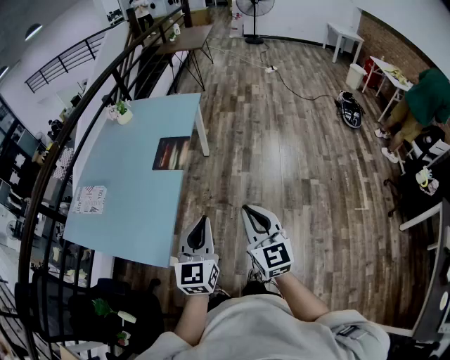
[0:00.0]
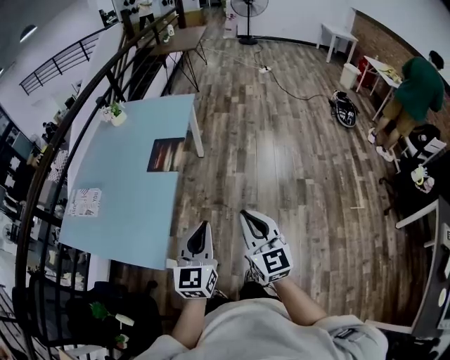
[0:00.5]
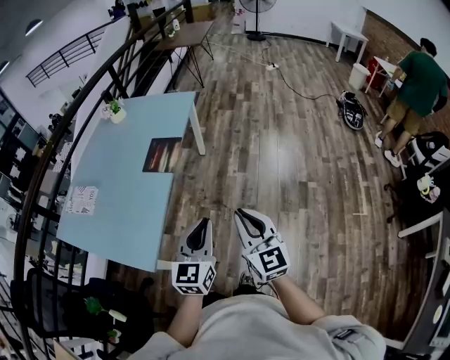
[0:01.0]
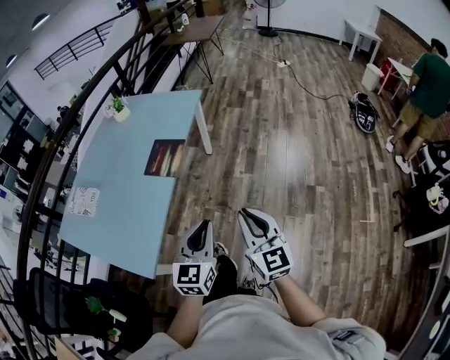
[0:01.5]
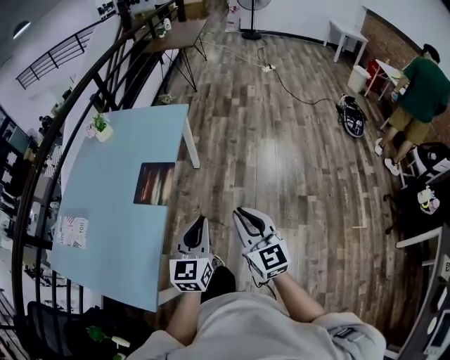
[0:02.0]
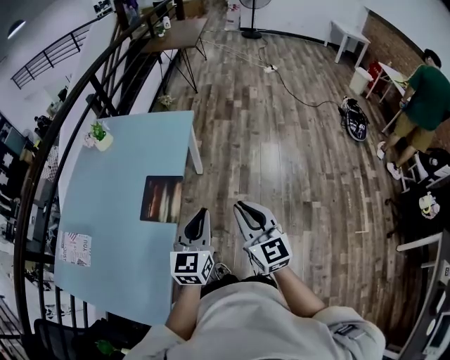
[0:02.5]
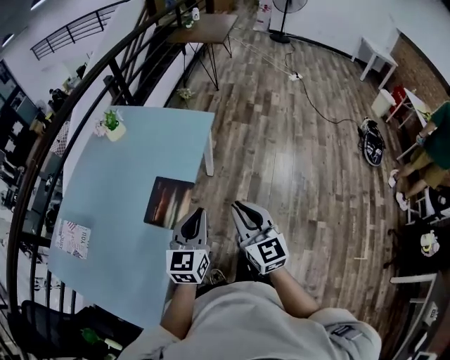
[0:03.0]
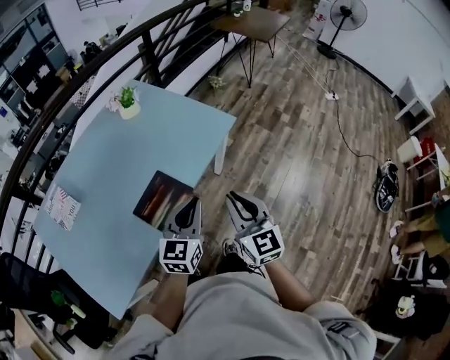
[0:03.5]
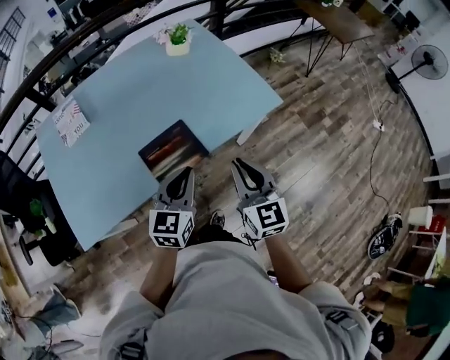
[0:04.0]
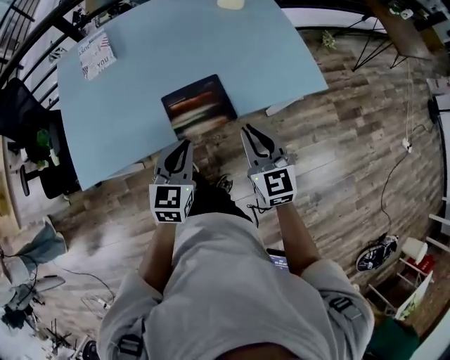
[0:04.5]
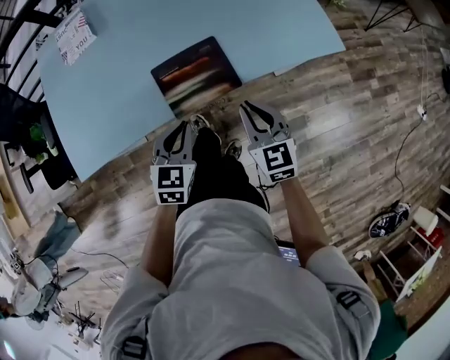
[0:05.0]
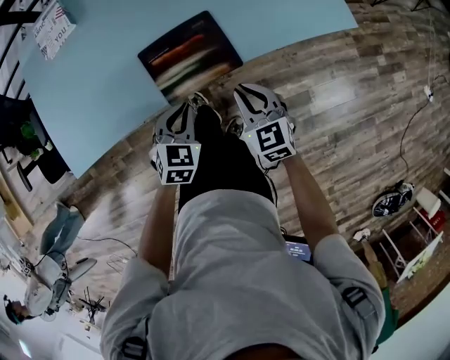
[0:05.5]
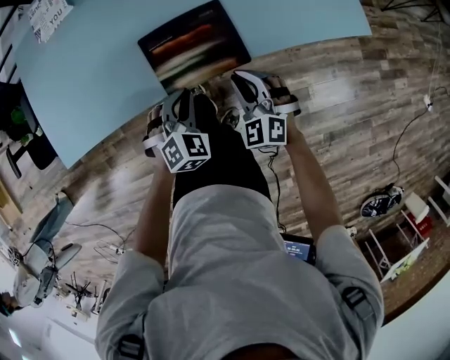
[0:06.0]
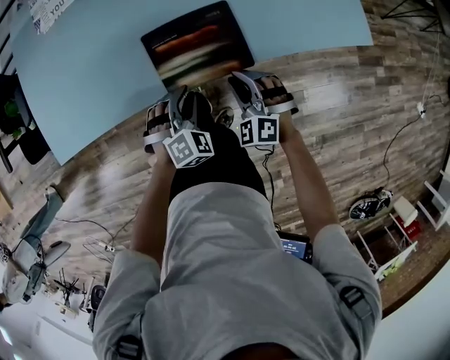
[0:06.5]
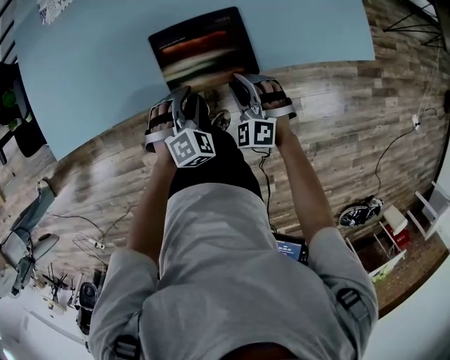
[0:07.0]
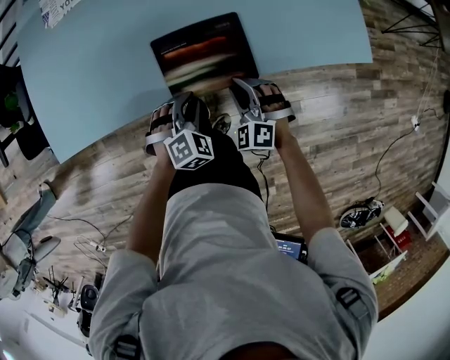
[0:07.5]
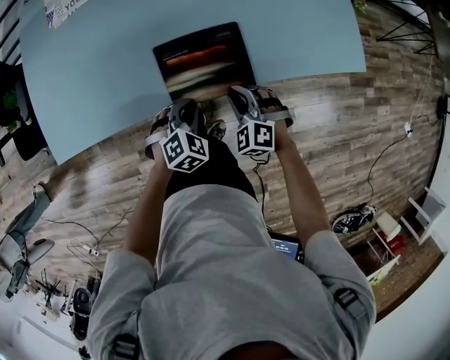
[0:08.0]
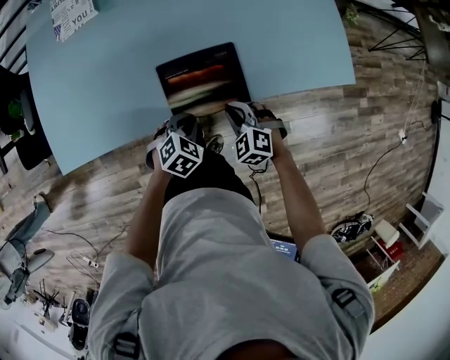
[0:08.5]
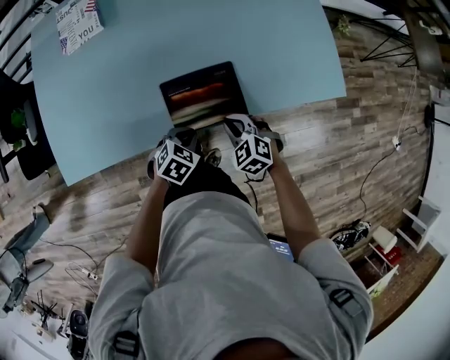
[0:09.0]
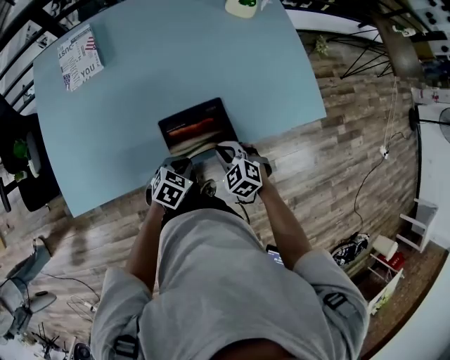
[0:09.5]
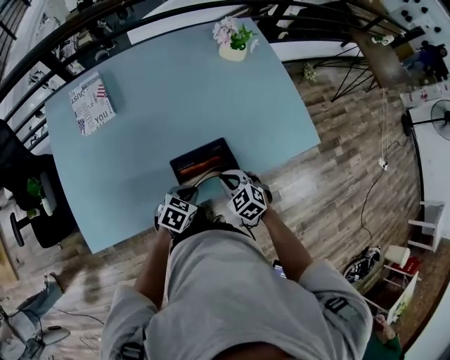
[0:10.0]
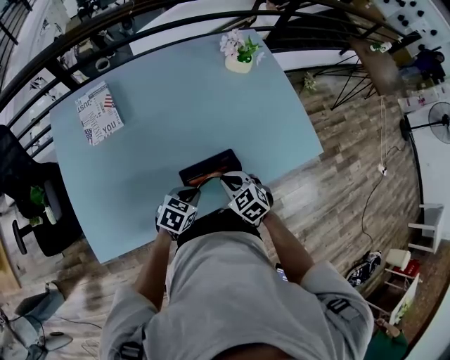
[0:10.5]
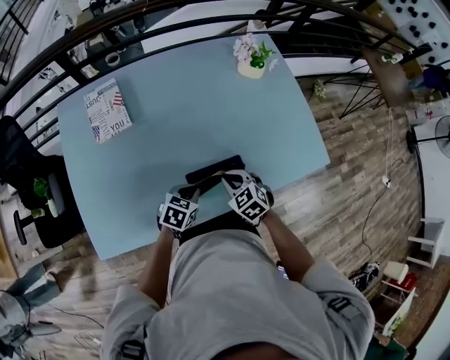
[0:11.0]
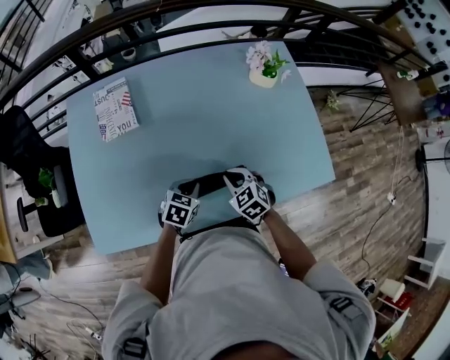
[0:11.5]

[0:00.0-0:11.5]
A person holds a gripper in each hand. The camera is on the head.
0:00.0 to 0:02.0: The two grippers go some 20 cm forward.
0:02.0 to 0:04.0: The right gripper moves about 40 cm, and swivels about 40 degrees; the left gripper moves approximately 30 cm, and changes its angle by roughly 40 degrees.
0:04.0 to 0:06.0: The grippers both shift downward by some 25 cm. The left gripper angles its fingers downward, by approximately 30 degrees. Meanwhile the right gripper rotates around the line of its fingers by some 40 degrees, counterclockwise from behind.
0:06.0 to 0:07.5: There are only small adjustments of the grippers.
0:07.5 to 0:09.5: The right gripper shifts roughly 5 cm upward, and swivels approximately 30 degrees. Meanwhile the left gripper turns by roughly 40 degrees.
0:09.5 to 0:11.5: The left gripper travels forward and to the left by about 15 cm, while the right gripper shifts some 15 cm forward, to the left and upward.

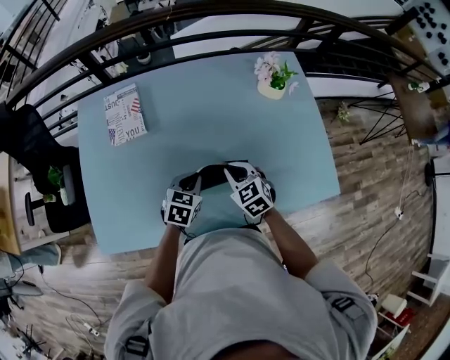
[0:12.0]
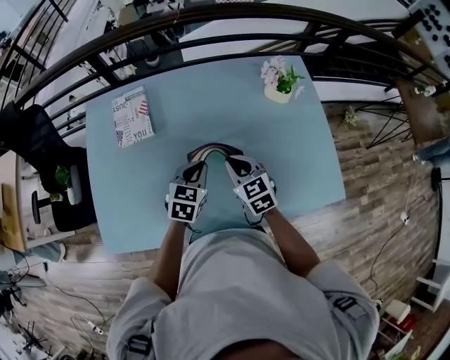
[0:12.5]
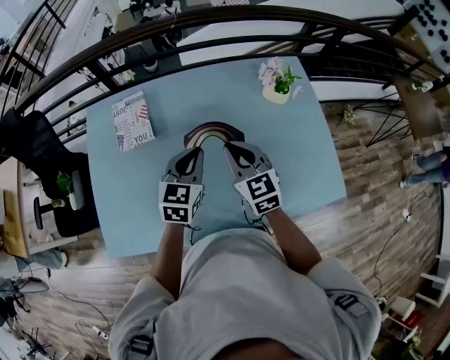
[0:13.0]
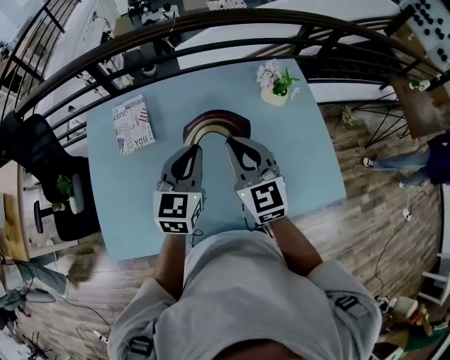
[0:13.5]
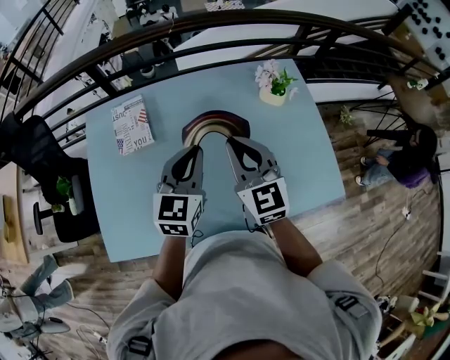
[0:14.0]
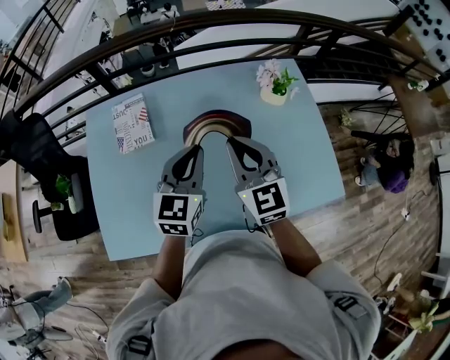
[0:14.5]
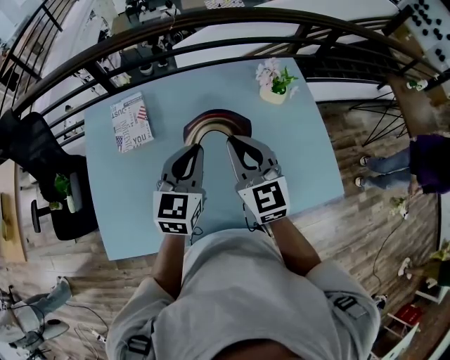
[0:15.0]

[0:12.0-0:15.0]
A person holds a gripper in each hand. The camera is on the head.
0:12.0 to 0:13.5: The two grippers go some 20 cm upward. The right gripper tilts its fingers roughly 30 degrees upward, while the left gripper turns by approximately 30 degrees.
0:13.5 to 0:15.0: The two grippers keep their place.

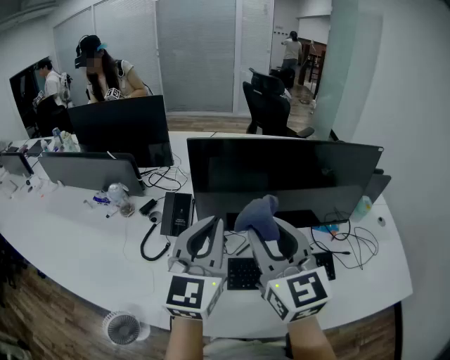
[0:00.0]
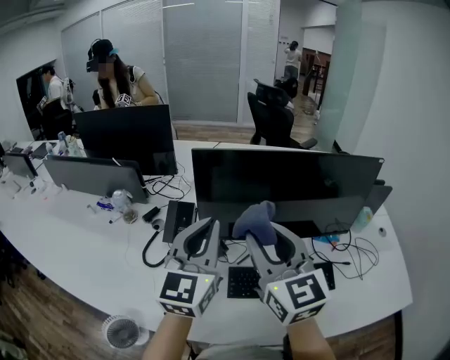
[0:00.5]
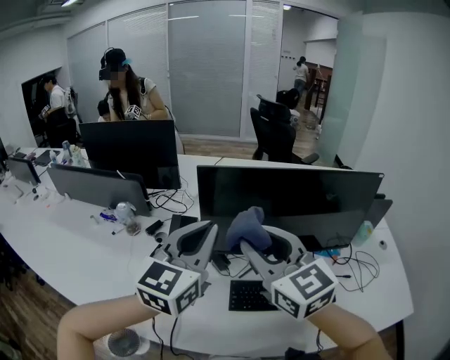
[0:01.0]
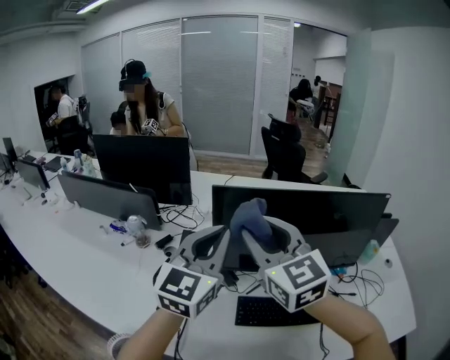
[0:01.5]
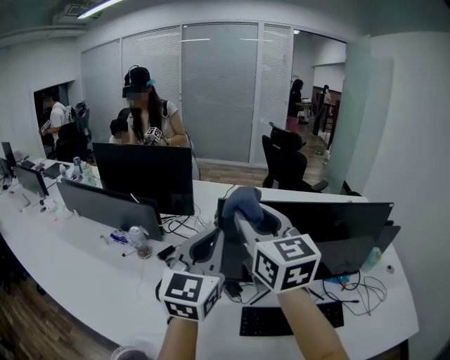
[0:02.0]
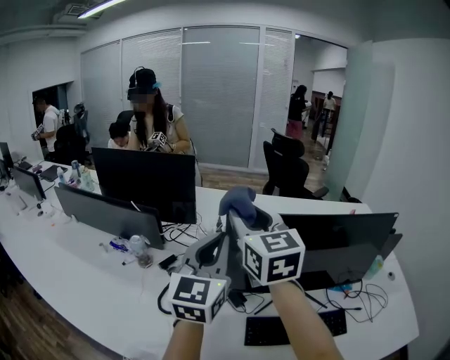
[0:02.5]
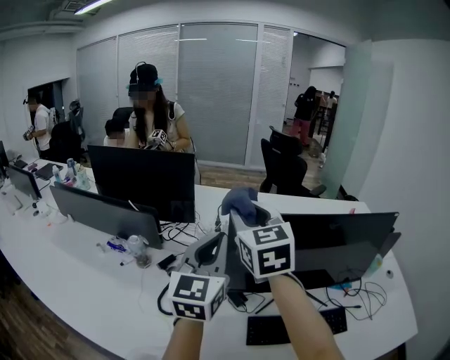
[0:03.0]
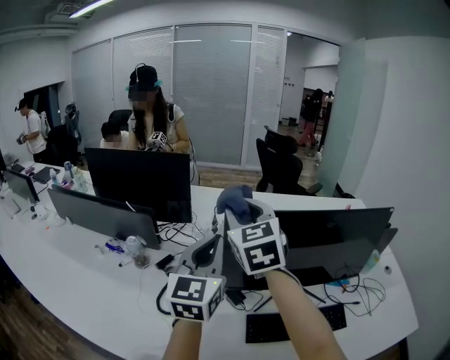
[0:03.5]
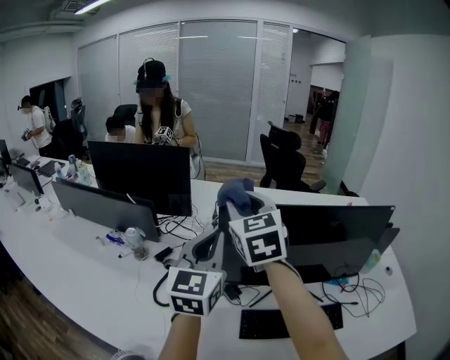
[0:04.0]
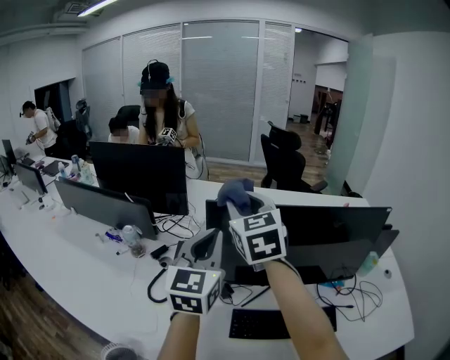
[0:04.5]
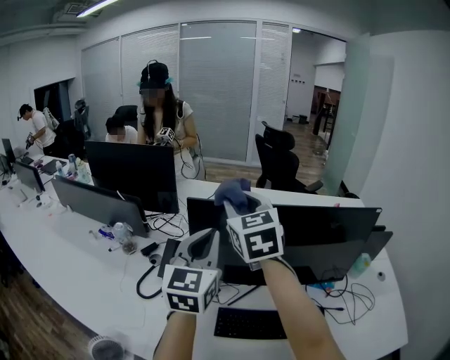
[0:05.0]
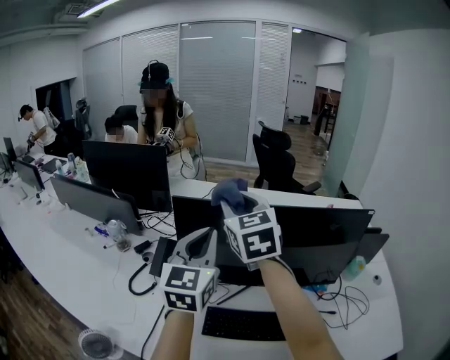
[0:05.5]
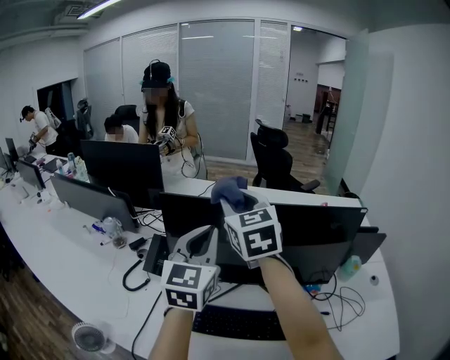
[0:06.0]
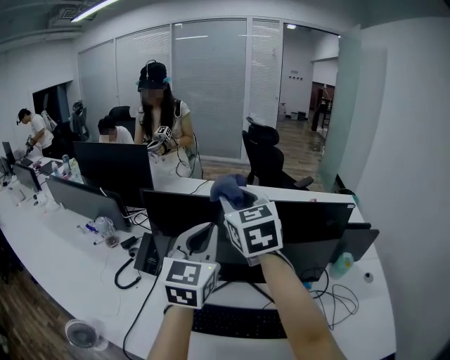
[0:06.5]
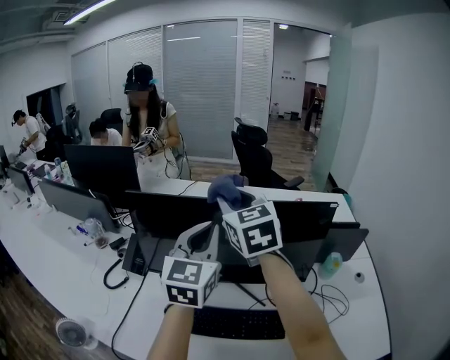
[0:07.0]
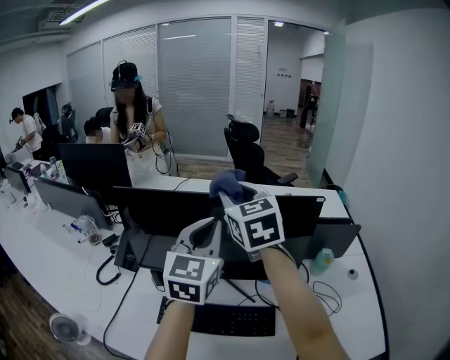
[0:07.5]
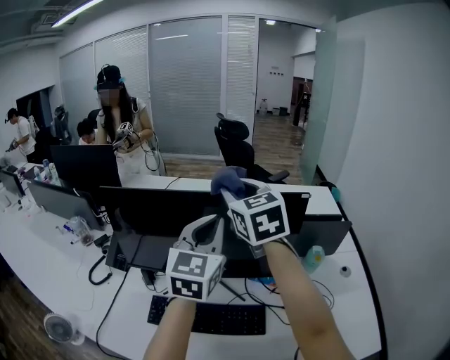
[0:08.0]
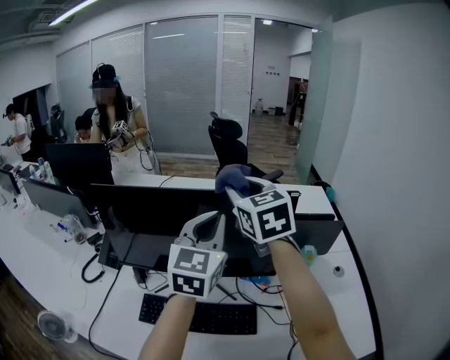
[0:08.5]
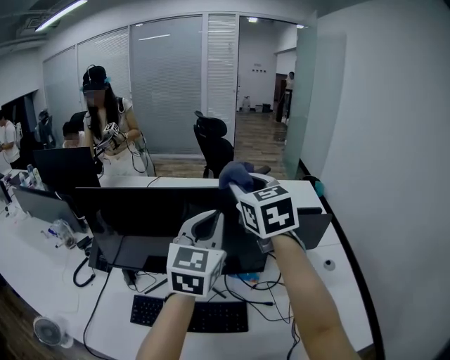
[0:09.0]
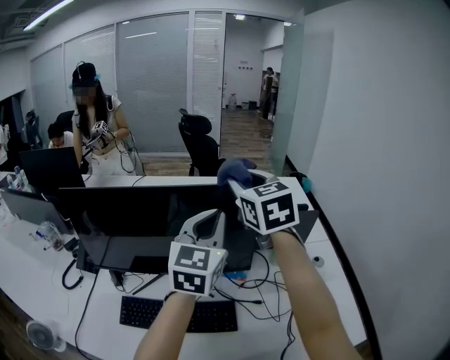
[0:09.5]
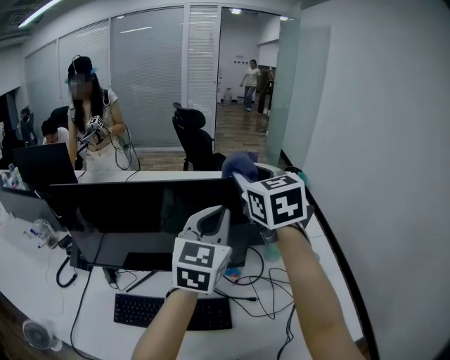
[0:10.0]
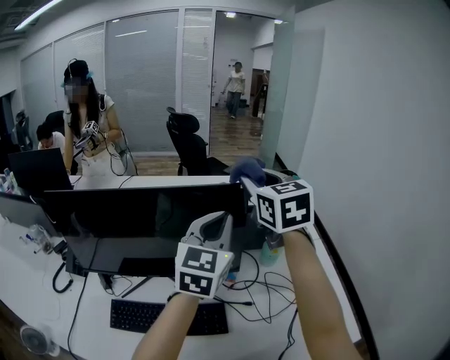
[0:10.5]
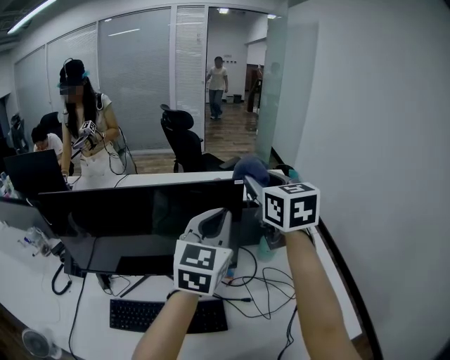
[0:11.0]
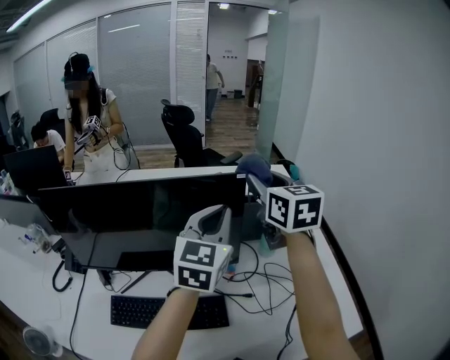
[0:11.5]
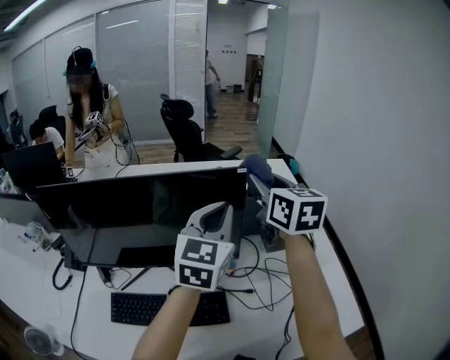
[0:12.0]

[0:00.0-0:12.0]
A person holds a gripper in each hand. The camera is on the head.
0:00.0 to 0:02.0: The right gripper moves forward, upward and to the left, roughly 15 cm. The left gripper goes some 10 cm forward, upward and to the left.
0:02.0 to 0:04.0: The right gripper heads forward, covering about 10 cm, and rotates roughly 20 degrees.
0:04.0 to 0:06.0: Both grippers travel together to the right, approximately 15 cm.
0:06.0 to 0:08.0: Both grippers move to the right, some 20 cm.
0:08.0 to 0:10.0: Both grippers move to the right, approximately 15 cm.
0:10.0 to 0:12.0: The right gripper is displaced to the right by about 5 cm, and swivels roughly 20 degrees.
